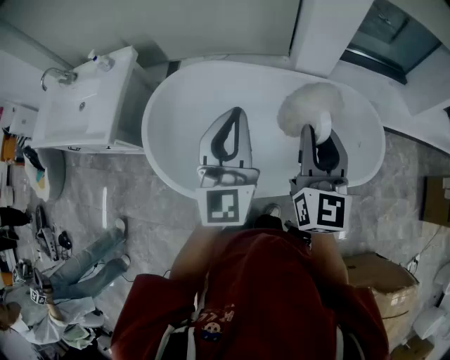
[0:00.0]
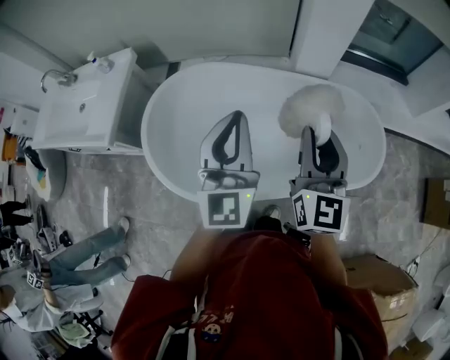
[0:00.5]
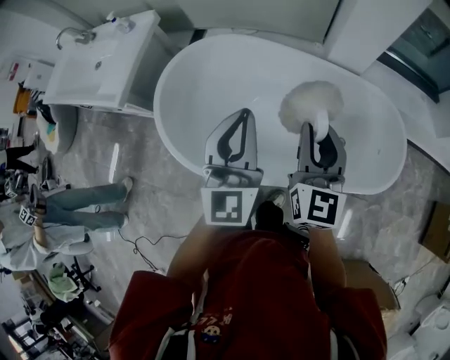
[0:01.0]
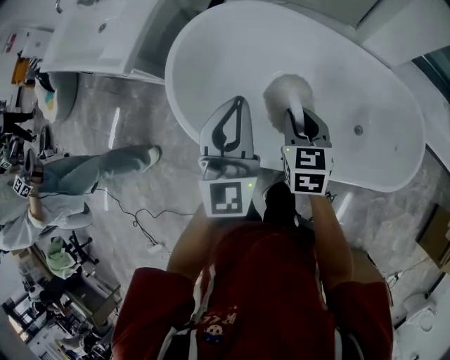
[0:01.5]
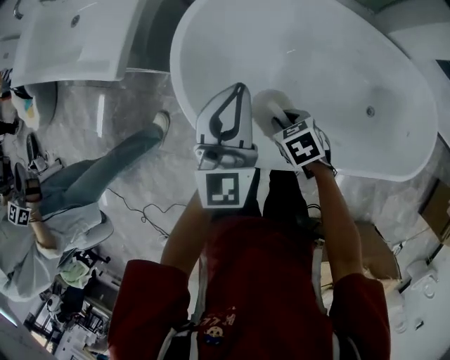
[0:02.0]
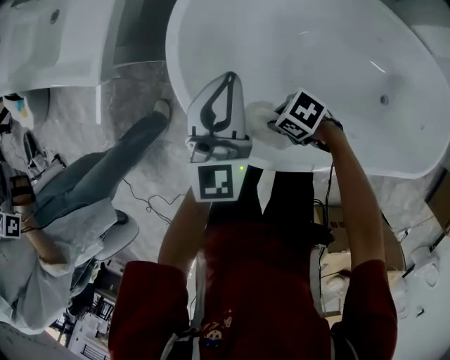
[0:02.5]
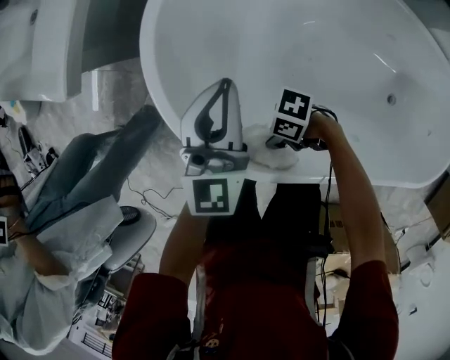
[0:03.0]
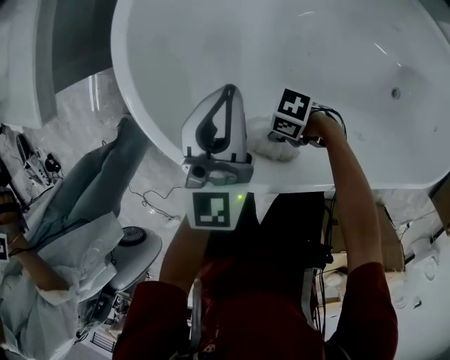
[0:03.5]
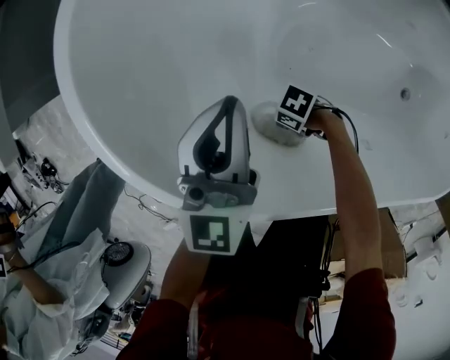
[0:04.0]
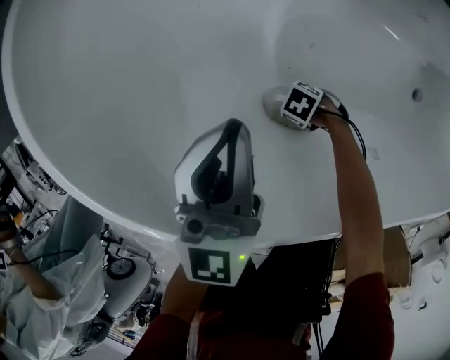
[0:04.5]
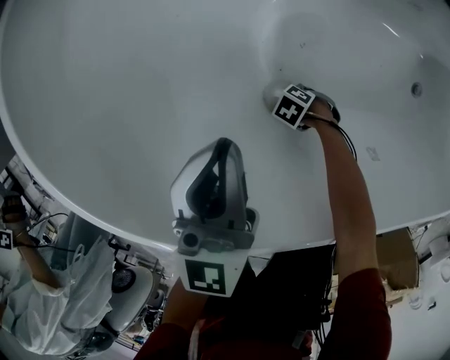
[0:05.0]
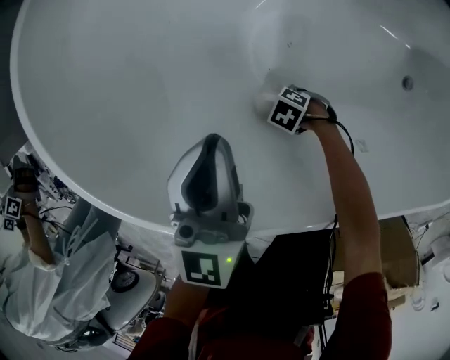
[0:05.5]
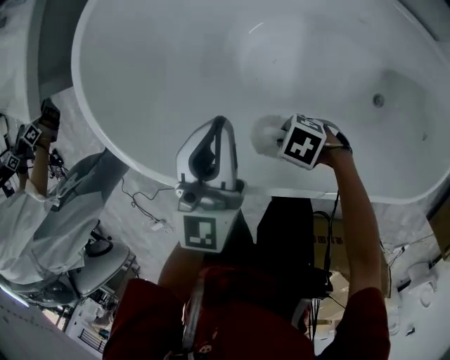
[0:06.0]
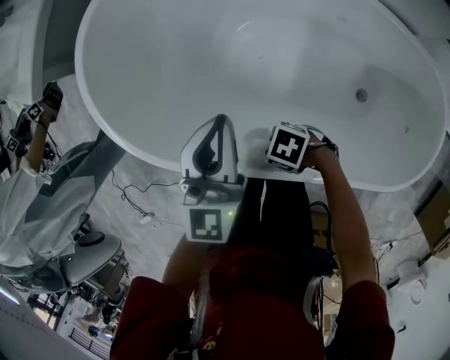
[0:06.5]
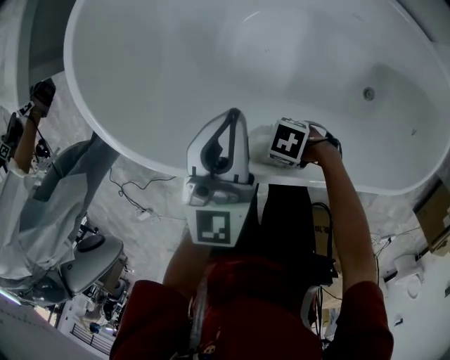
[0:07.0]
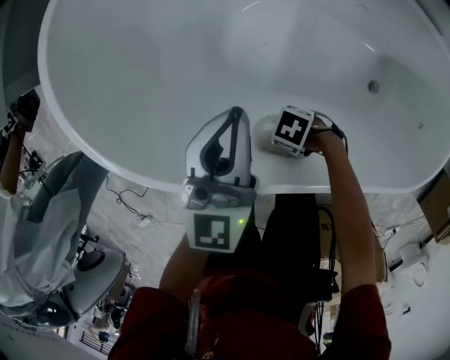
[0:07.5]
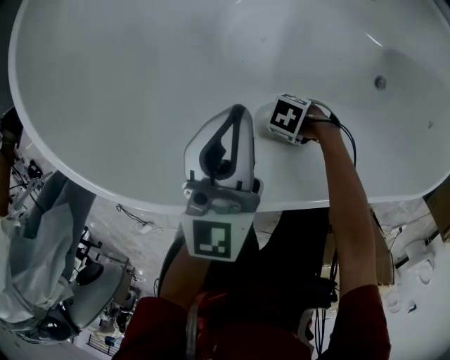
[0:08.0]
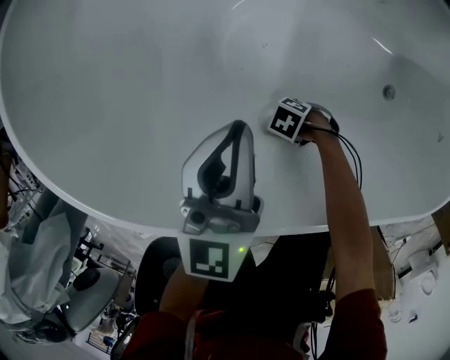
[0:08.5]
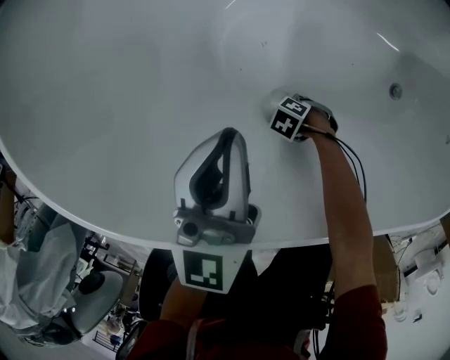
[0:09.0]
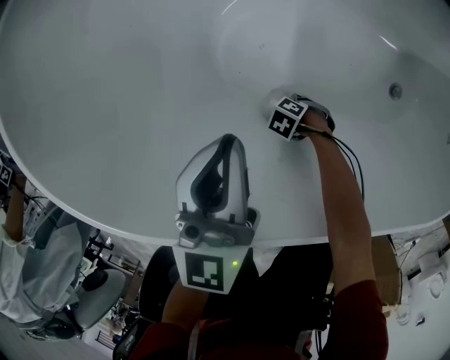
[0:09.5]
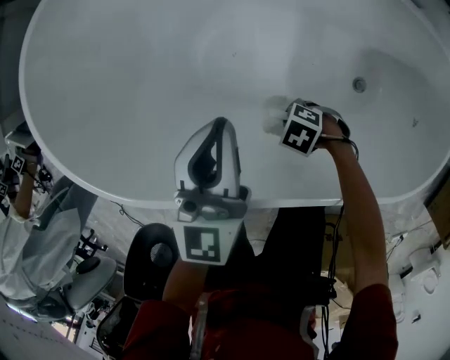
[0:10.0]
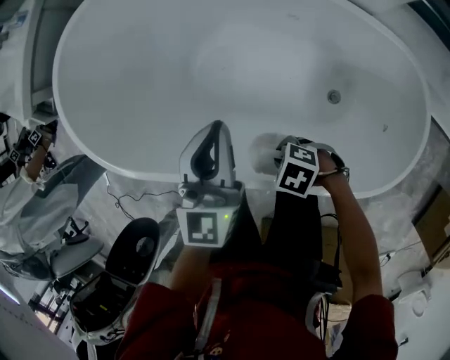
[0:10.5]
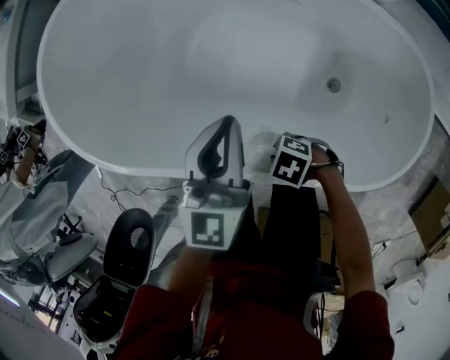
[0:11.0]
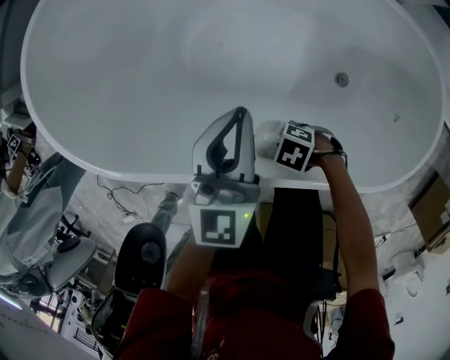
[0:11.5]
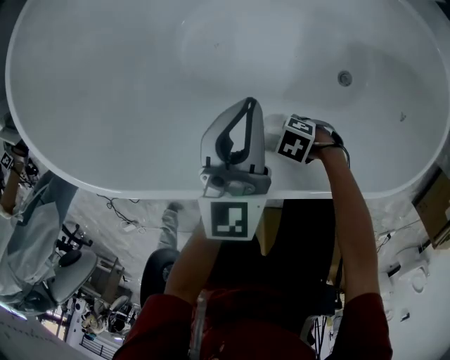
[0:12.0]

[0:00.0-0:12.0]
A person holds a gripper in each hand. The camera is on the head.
0:00.0 to 0:02.0: The left gripper moves about 30 cm.
0:02.0 to 0:04.0: The left gripper shifts roughly 25 cm downward.
0:04.0 to 0:06.0: The left gripper changes place by some 20 cm.
0:06.0 to 0:08.0: The left gripper heads downward, covering approximately 10 cm.
0:08.0 to 0:10.0: The left gripper ends up about 10 cm from where it was.
0:10.0 to 0:12.0: The left gripper goes upward and returns, about 10 cm each way.

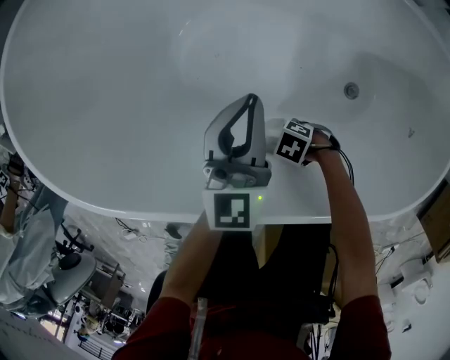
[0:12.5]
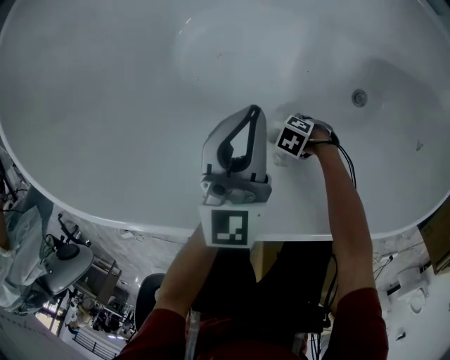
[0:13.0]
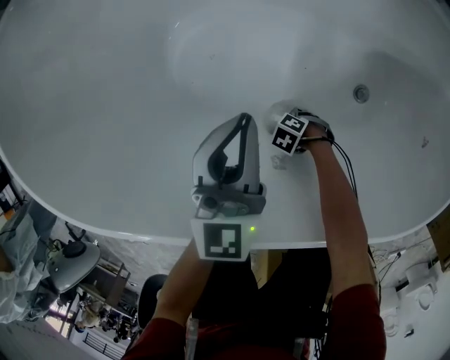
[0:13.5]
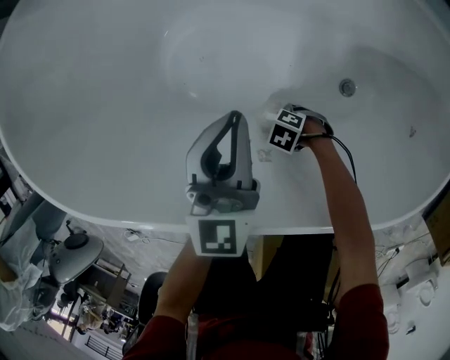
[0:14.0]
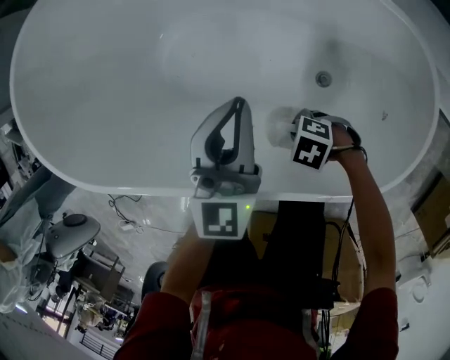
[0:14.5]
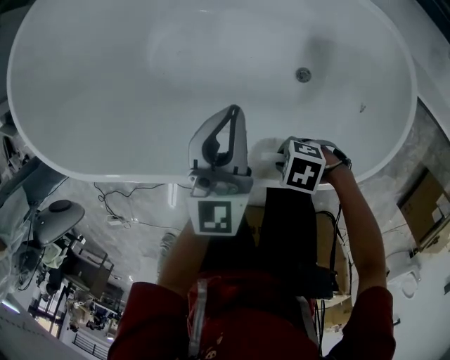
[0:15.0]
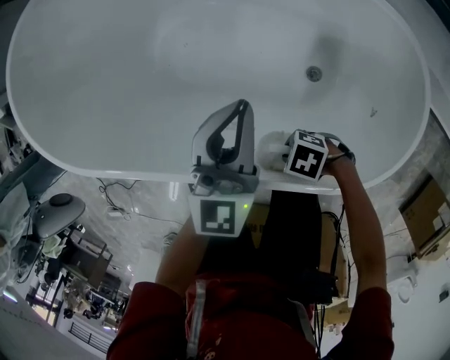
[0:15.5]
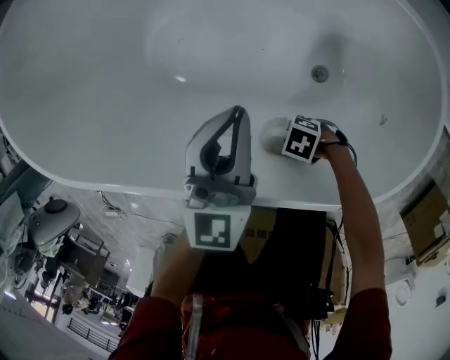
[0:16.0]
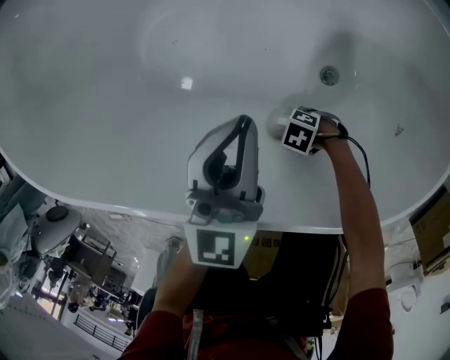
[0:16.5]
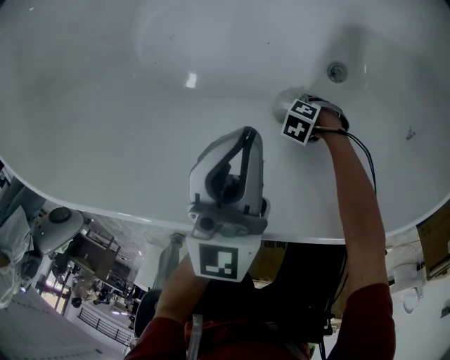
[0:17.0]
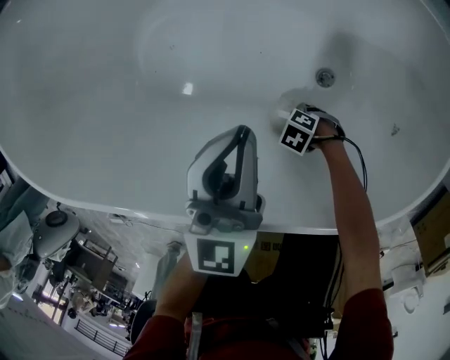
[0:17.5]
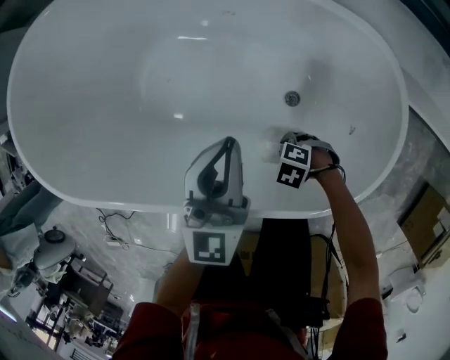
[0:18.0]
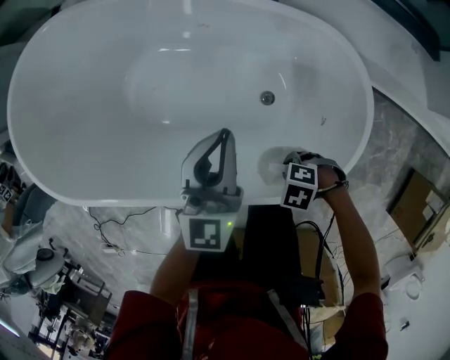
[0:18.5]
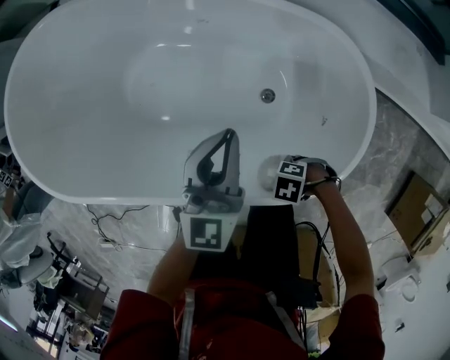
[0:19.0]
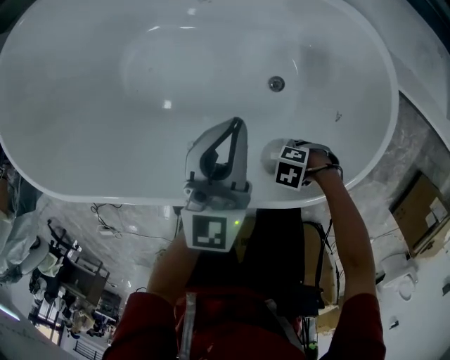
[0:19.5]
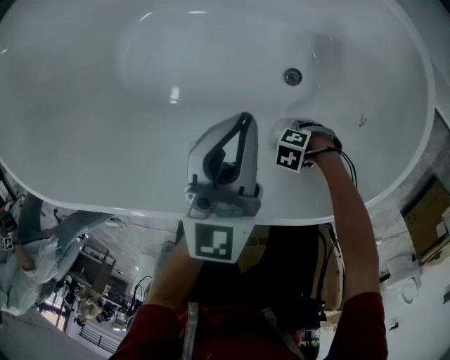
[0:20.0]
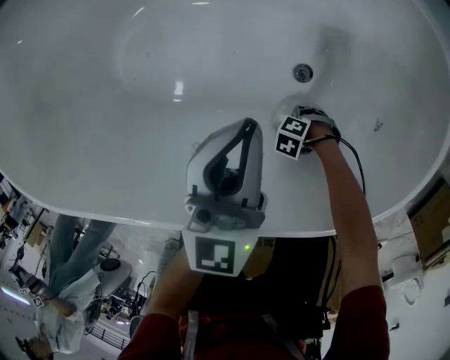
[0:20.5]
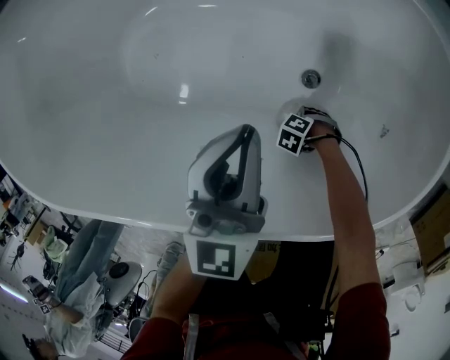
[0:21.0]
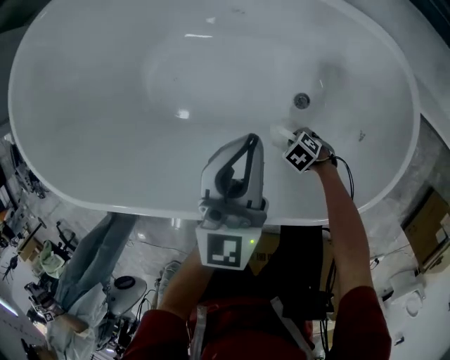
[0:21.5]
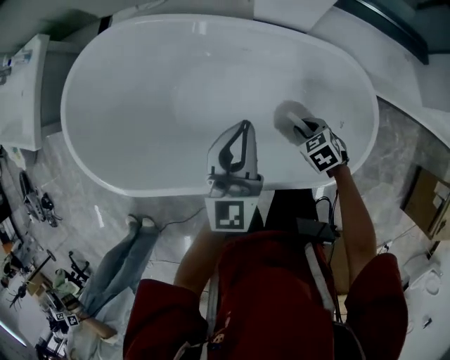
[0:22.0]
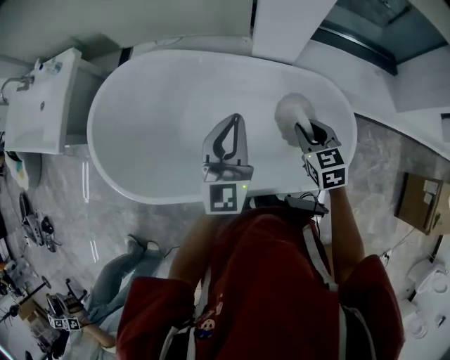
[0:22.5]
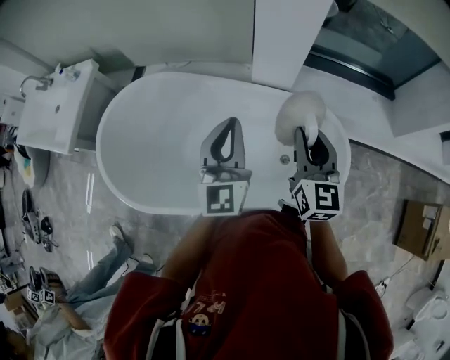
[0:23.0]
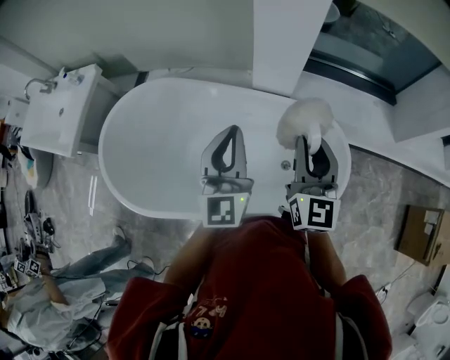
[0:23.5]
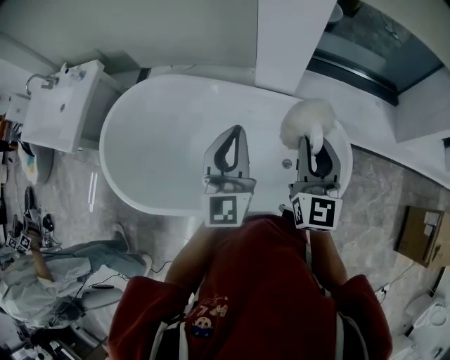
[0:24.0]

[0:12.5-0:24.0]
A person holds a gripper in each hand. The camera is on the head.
0:12.5 to 0:14.5: The left gripper changes place by roughly 15 cm.
0:14.5 to 0:16.5: The left gripper moves downward, approximately 10 cm.
0:16.5 to 0:18.5: The left gripper moves upward, about 15 cm.
0:18.5 to 0:20.0: The left gripper heads downward, covering roughly 15 cm.
0:20.0 to 0:22.0: The left gripper moves upward, some 30 cm.
0:22.0 to 0:24.0: The left gripper heads upward, covering some 20 cm.

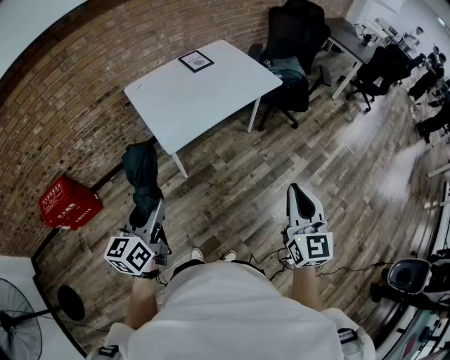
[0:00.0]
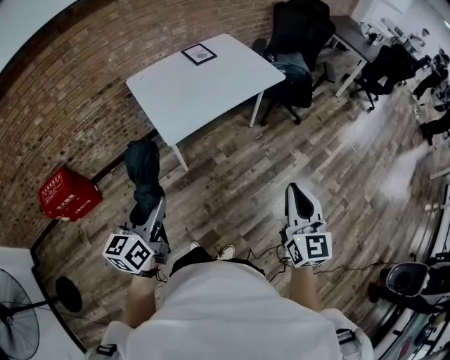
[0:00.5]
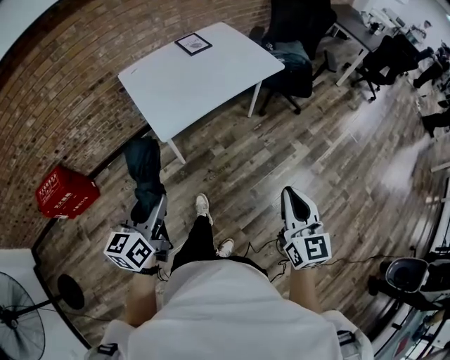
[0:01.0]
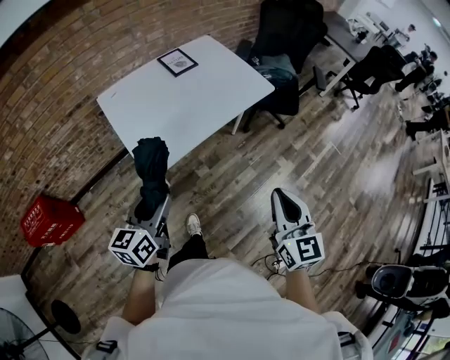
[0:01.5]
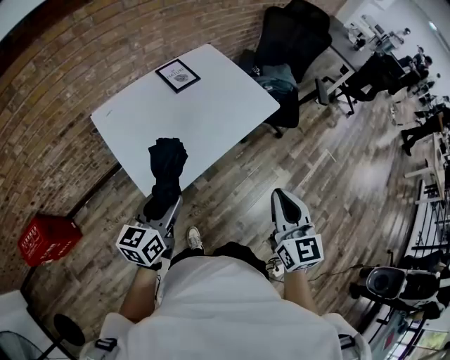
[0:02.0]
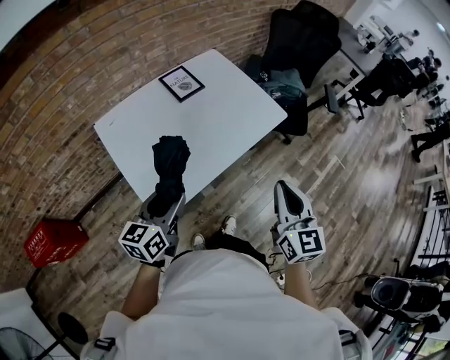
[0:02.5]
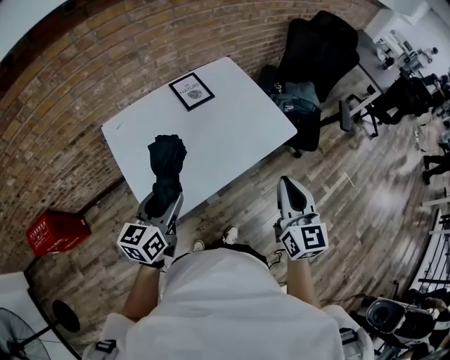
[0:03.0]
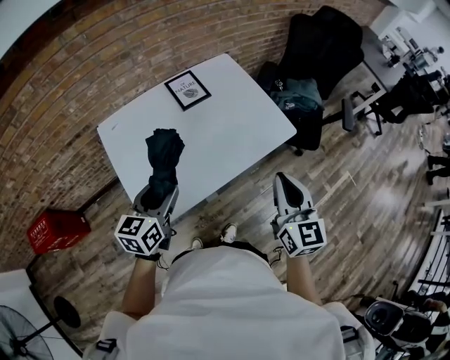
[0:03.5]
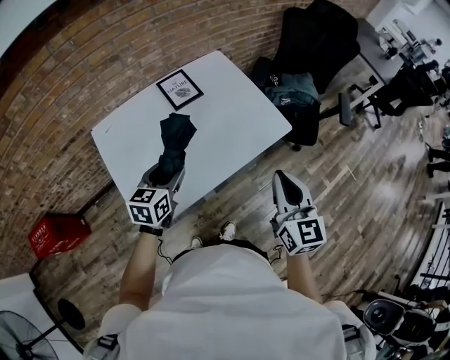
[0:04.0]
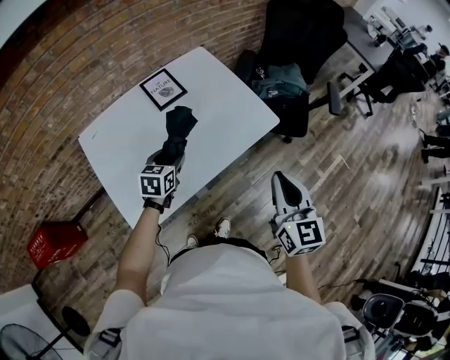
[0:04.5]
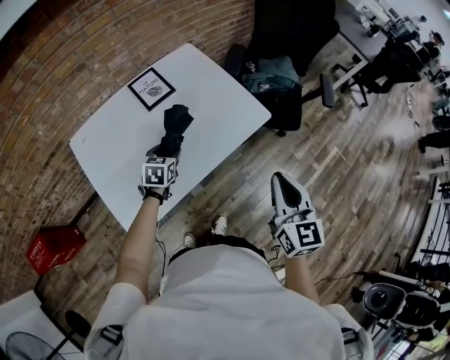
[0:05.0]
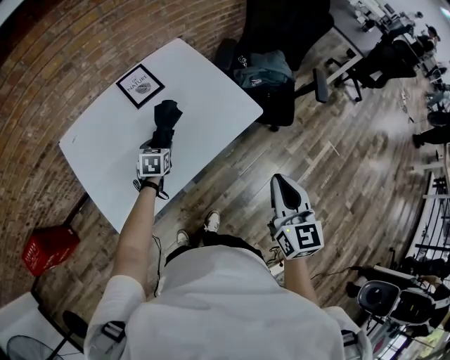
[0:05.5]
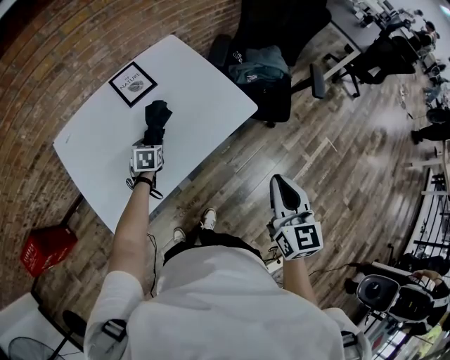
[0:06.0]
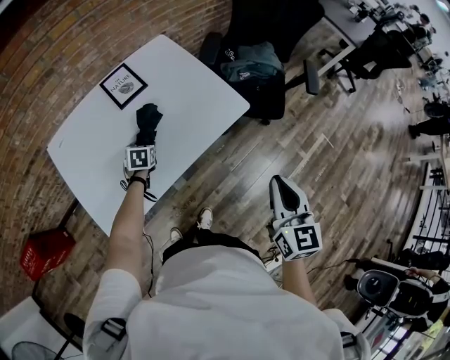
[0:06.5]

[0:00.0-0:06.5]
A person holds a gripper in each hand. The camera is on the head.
0:00.0 to 0:02.0: The two grippers go about 25 cm forward.
0:02.0 to 0:04.5: The right gripper travels forward and to the right by roughly 20 cm. Meanwhile the left gripper heads forward and downward, covering approximately 30 cm, and changes its angle by some 30 degrees.
0:04.5 to 0:06.5: The right gripper goes some 10 cm to the right. Meanwhile the left gripper goes about 15 cm downward and forward, and changes its angle by approximately 20 degrees.
